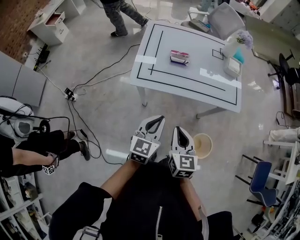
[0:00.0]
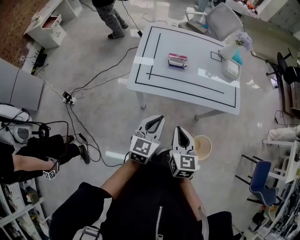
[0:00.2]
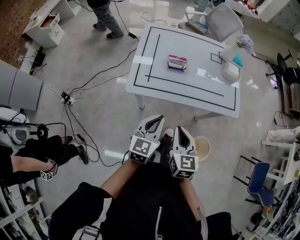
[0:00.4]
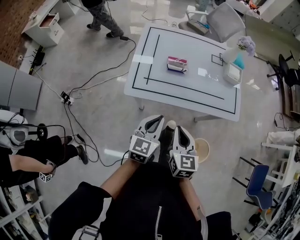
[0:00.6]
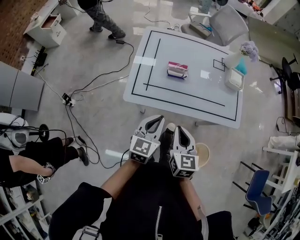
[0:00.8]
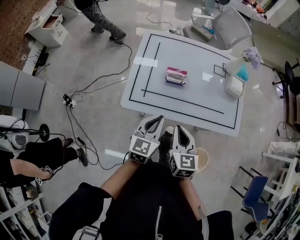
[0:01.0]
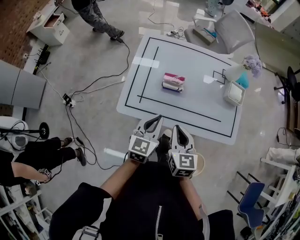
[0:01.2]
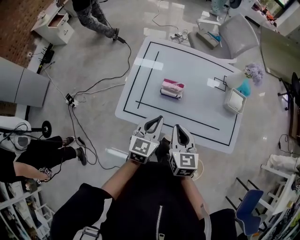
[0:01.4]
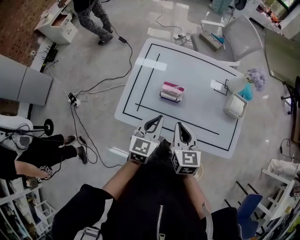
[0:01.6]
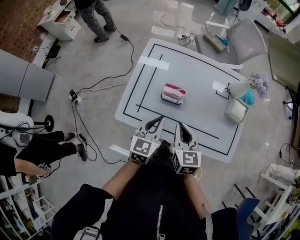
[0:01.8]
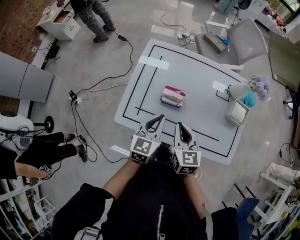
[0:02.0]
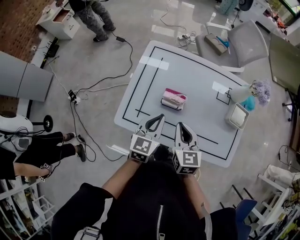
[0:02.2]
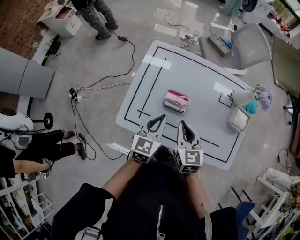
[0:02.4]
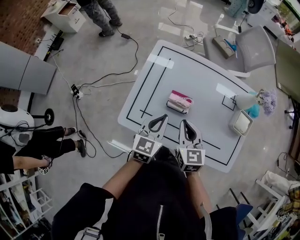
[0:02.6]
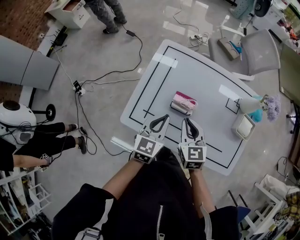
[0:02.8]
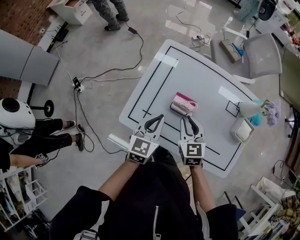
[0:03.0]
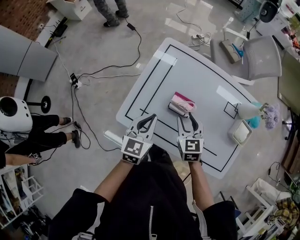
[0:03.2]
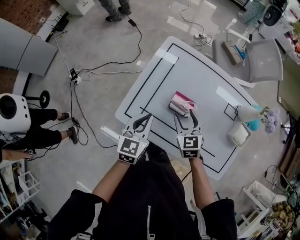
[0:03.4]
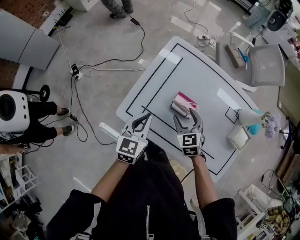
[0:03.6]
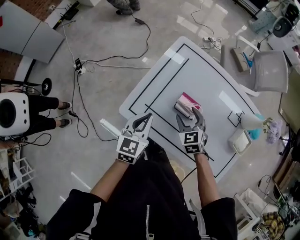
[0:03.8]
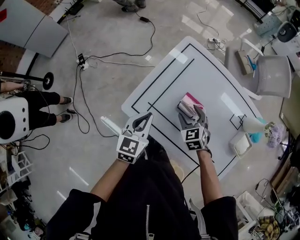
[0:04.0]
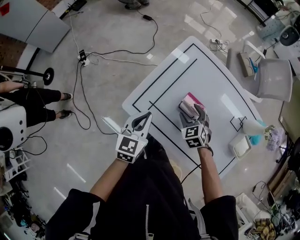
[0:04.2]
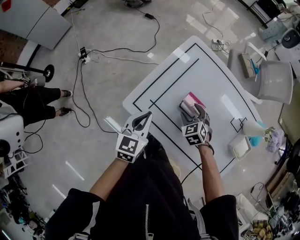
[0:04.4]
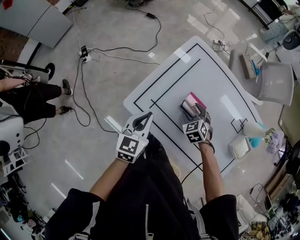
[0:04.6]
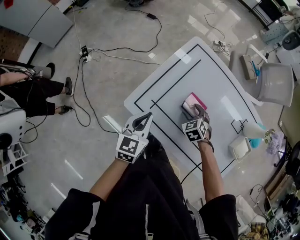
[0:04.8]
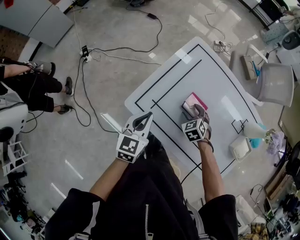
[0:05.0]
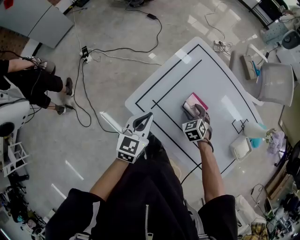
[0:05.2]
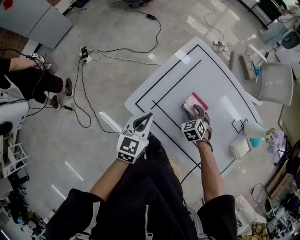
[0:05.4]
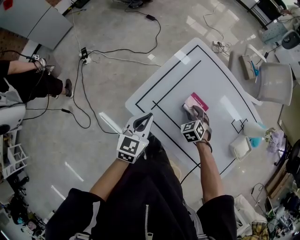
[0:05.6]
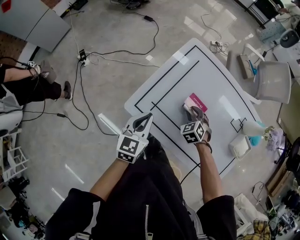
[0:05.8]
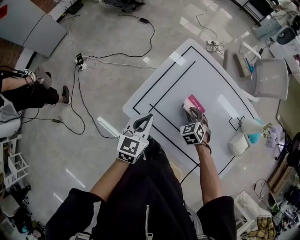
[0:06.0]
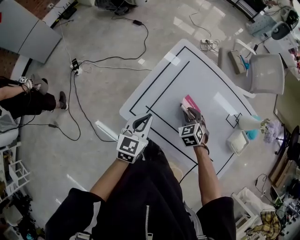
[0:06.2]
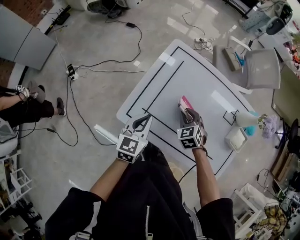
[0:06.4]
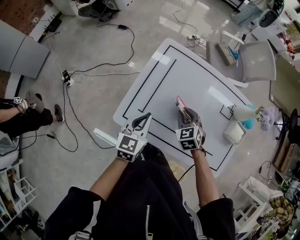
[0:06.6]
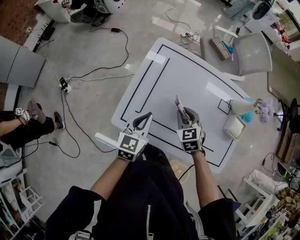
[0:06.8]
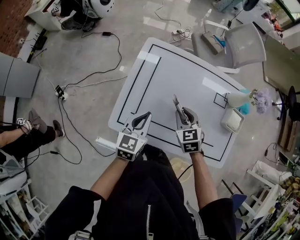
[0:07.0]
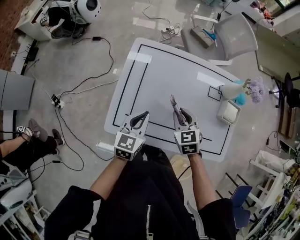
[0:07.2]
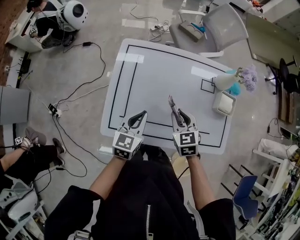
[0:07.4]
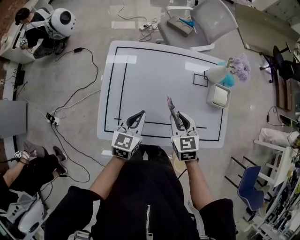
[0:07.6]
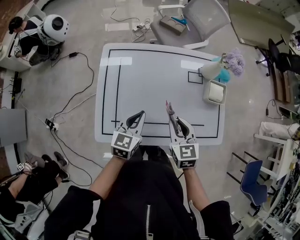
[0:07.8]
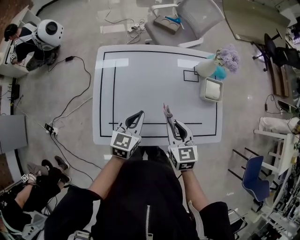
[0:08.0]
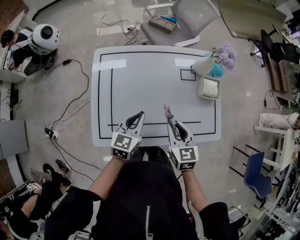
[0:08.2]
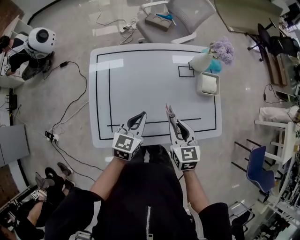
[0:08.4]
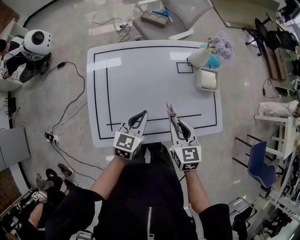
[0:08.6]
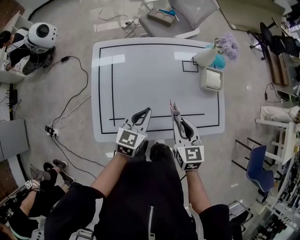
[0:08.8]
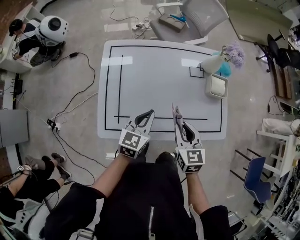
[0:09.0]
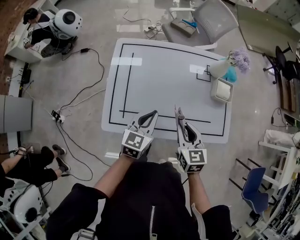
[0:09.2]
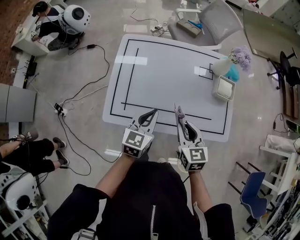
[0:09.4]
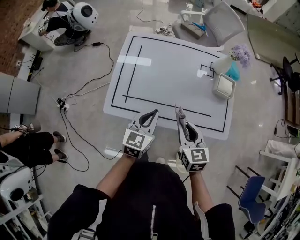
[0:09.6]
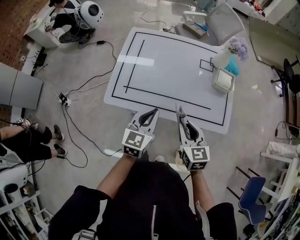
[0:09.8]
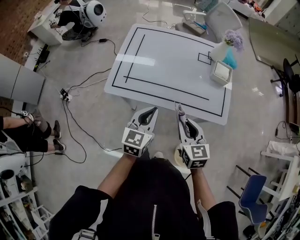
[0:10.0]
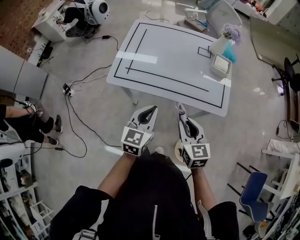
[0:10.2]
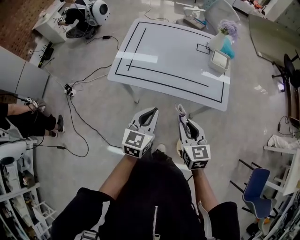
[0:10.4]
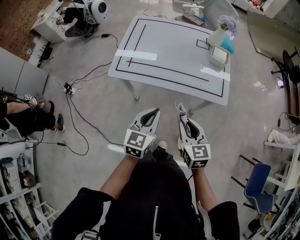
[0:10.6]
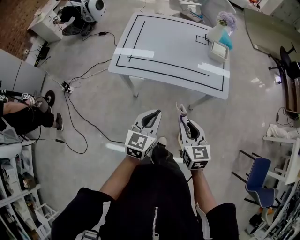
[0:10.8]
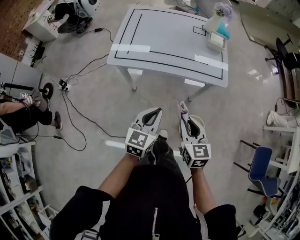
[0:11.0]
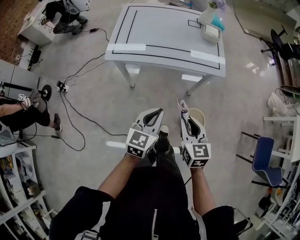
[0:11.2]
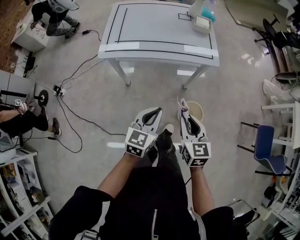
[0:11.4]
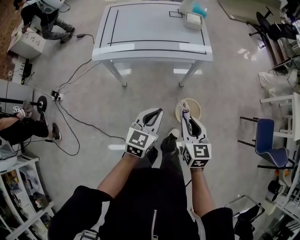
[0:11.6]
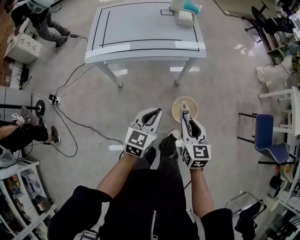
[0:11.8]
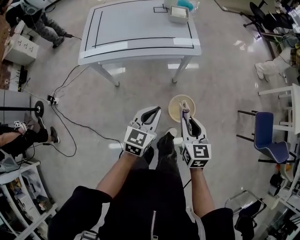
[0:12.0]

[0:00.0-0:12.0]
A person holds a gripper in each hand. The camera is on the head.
0:00.0 to 0:01.6: Both grippers move forward, about 30 cm.
0:01.6 to 0:03.0: The left gripper travels forward and to the left by roughly 10 cm, while the right gripper goes roughly 10 cm forward.
0:03.0 to 0:04.4: The right gripper heads downward, covering roughly 10 cm, swivels about 40 degrees, and opens up. Meanwhile the left gripper heads to the left, covering about 10 cm.
0:04.4 to 0:06.0: The right gripper closes its fingers.
0:06.0 to 0:07.6: The left gripper changes place by some 15 cm, and swivels about 30 degrees. The right gripper moves upward, some 15 cm, and rolls clockwise, seen from behind, by roughly 50 degrees.
0:07.6 to 0:09.0: The right gripper heads backward and to the right, covering roughly 10 cm, while the left gripper travels to the right by about 5 cm.
0:09.0 to 0:10.4: Both grippers move backward, some 30 cm.
0:10.4 to 0:12.0: The grippers both shift backward and to the right by roughly 25 cm. The left gripper turns by about 20 degrees. Meanwhile the right gripper turns by approximately 20 degrees.

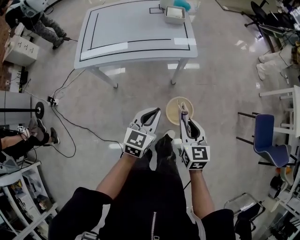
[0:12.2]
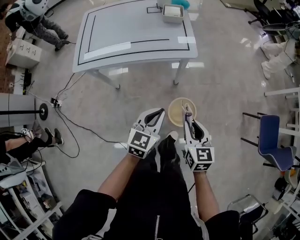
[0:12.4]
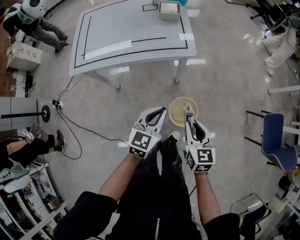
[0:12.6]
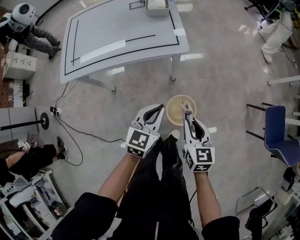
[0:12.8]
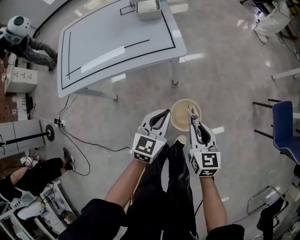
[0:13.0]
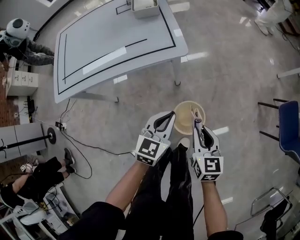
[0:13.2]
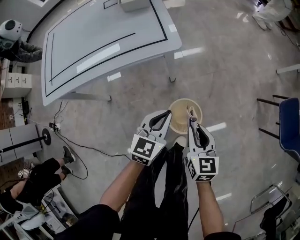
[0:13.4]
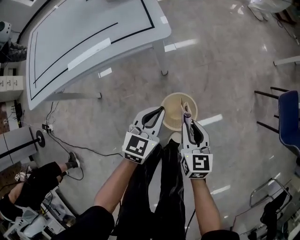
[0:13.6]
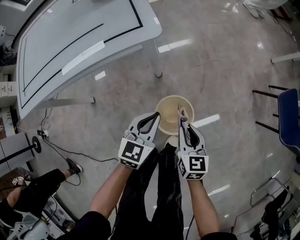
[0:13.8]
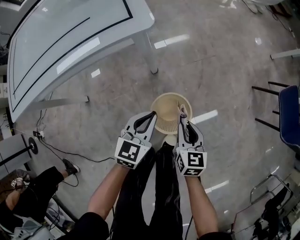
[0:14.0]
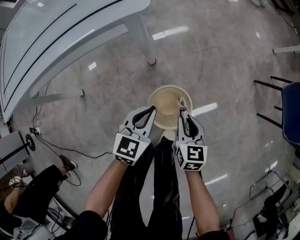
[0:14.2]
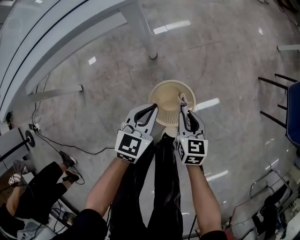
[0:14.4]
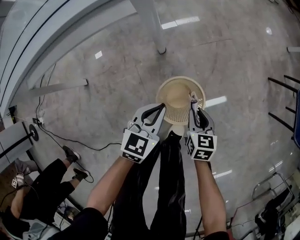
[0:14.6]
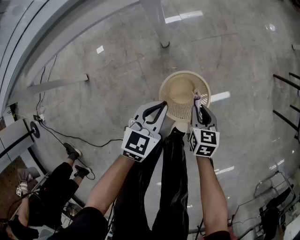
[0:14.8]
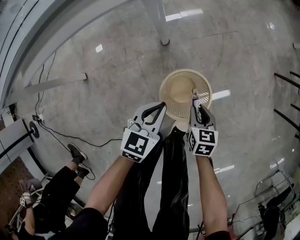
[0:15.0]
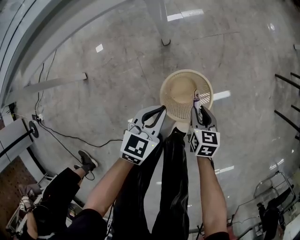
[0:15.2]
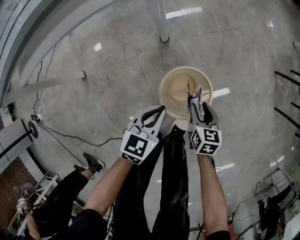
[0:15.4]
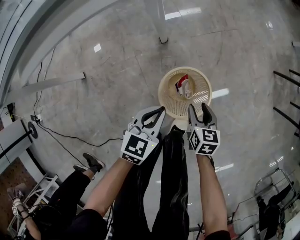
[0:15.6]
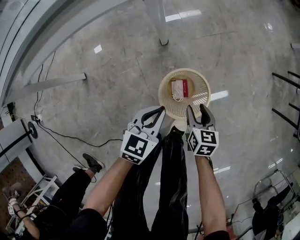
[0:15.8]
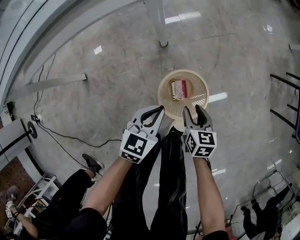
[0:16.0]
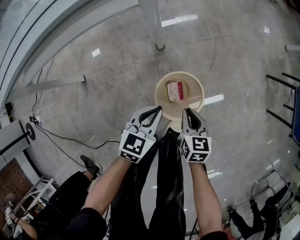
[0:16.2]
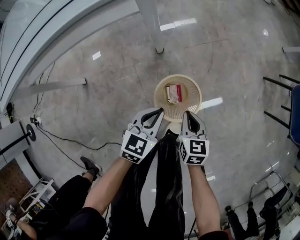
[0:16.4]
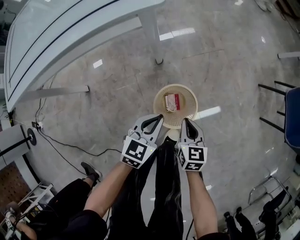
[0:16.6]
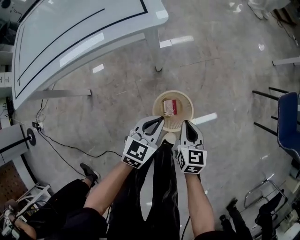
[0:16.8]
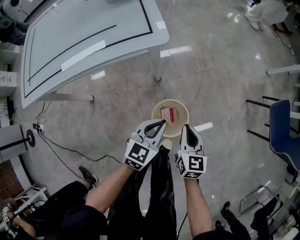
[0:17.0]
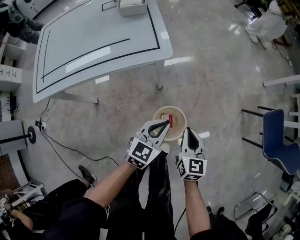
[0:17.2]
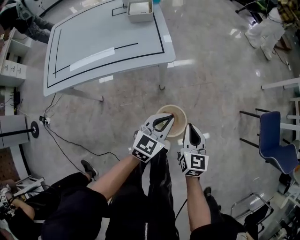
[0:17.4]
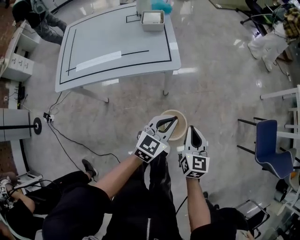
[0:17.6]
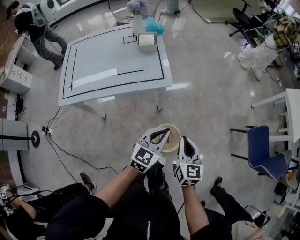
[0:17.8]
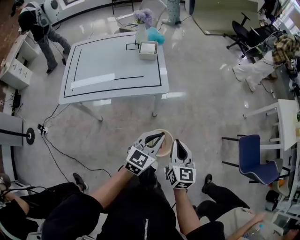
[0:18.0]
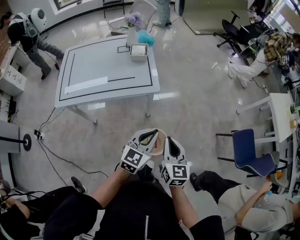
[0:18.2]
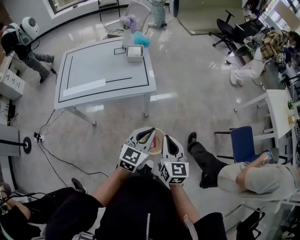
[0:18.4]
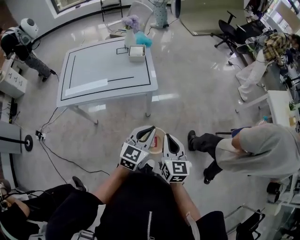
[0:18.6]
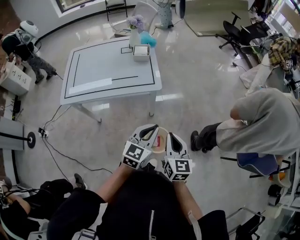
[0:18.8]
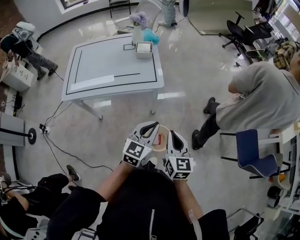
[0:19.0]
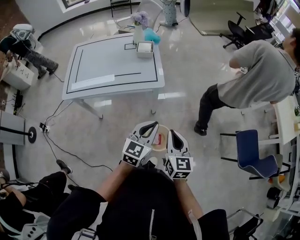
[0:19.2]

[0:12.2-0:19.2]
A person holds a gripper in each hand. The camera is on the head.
0:12.2 to 0:13.6: The right gripper heads downward and forward, covering about 30 cm; the left gripper moves downward, forward and to the right, some 30 cm.
0:13.6 to 0:15.0: The grippers both shift downward by about 30 cm. The right gripper changes its angle by roughly 20 degrees.
0:15.0 to 0:16.4: The right gripper moves upward, approximately 10 cm, and opens and closes again. The left gripper changes place by about 5 cm.
0:16.4 to 0:17.8: The grippers both shift upward by about 40 cm. The right gripper swivels roughly 20 degrees.
0:17.8 to 0:19.2: Both grippers move upward, roughly 10 cm.

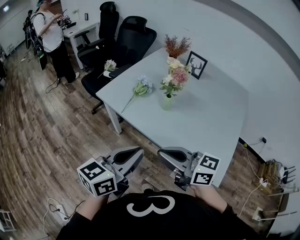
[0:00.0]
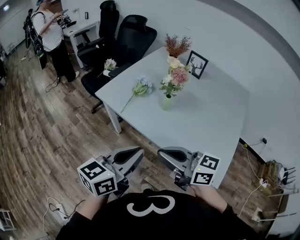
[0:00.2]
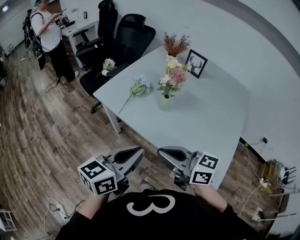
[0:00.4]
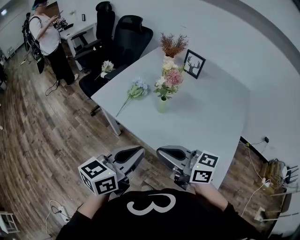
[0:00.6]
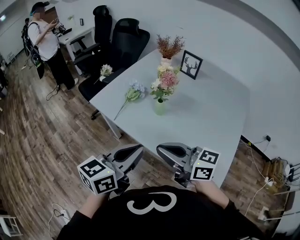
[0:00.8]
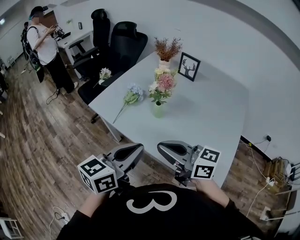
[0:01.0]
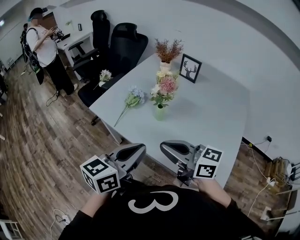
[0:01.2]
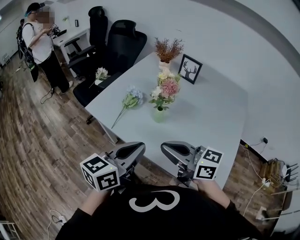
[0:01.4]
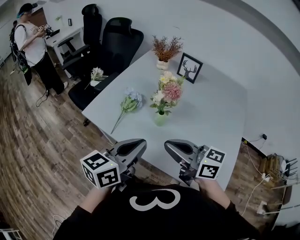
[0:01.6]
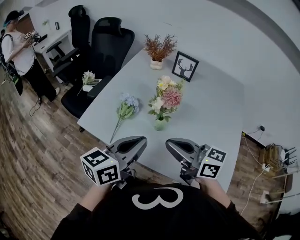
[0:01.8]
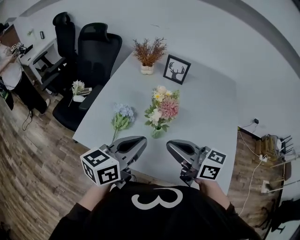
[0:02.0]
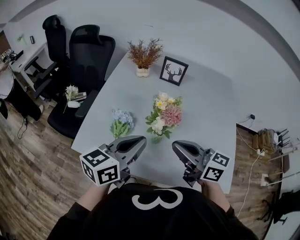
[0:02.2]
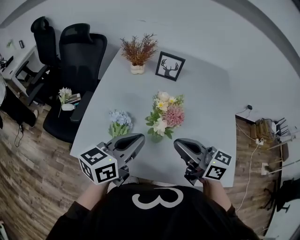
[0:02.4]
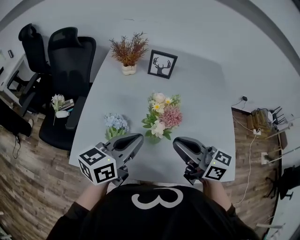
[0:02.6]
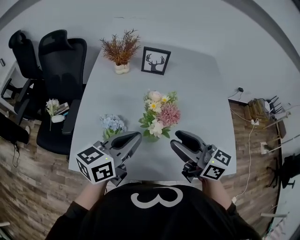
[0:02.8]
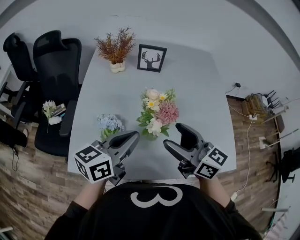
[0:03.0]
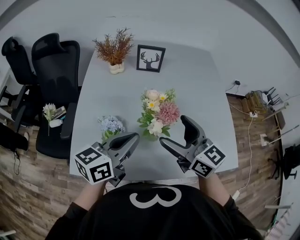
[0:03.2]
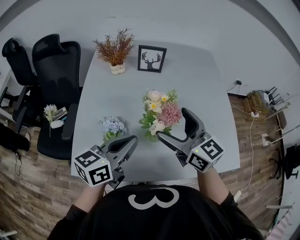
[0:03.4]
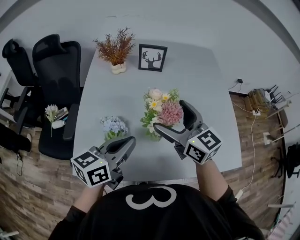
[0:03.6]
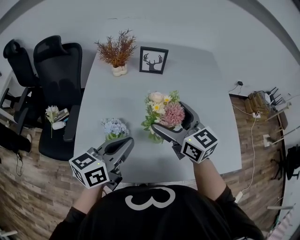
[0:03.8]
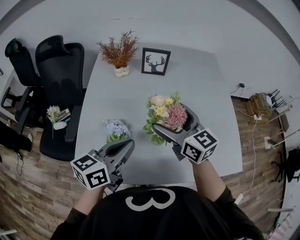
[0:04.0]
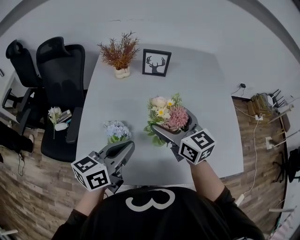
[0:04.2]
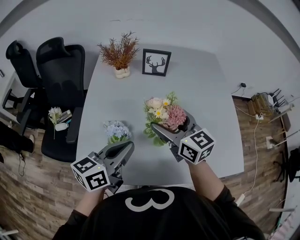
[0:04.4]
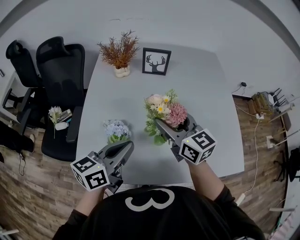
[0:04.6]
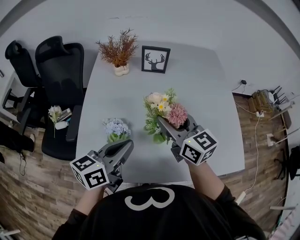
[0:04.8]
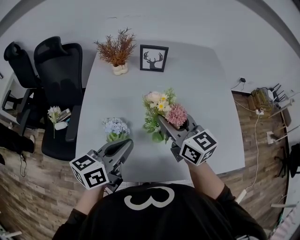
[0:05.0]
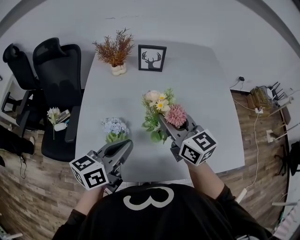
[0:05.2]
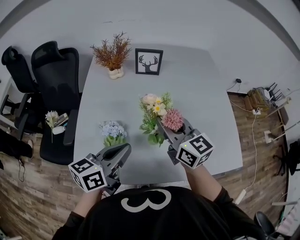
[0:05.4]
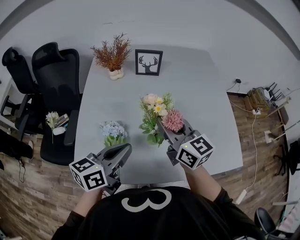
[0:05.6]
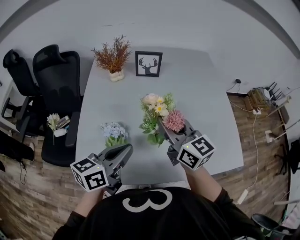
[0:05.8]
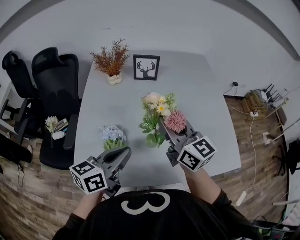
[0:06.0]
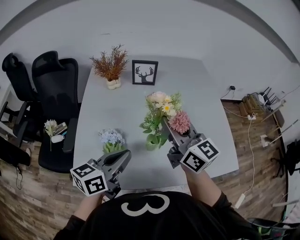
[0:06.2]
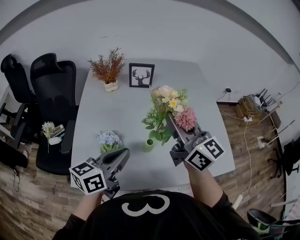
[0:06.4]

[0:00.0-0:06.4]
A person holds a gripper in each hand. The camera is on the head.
0:00.0 to 0:01.6: The left gripper goes about 15 cm forward, while the right gripper is displaced forward and to the right by about 15 cm.
0:01.6 to 0:03.2: The right gripper ends up roughly 15 cm from where it was, turns by approximately 50 degrees, and opens; the left gripper moves some 20 cm, and changes its angle by some 30 degrees.
0:03.2 to 0:04.8: The right gripper is displaced forward by about 5 cm, and closes up.
0:04.8 to 0:06.4: The right gripper moves upward and to the right, some 10 cm.
